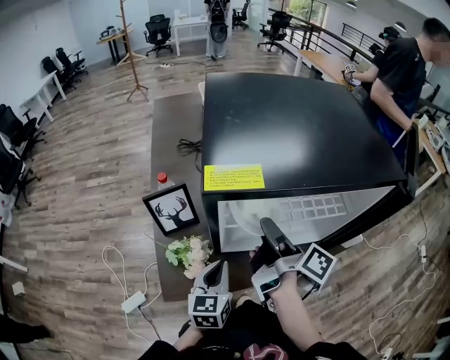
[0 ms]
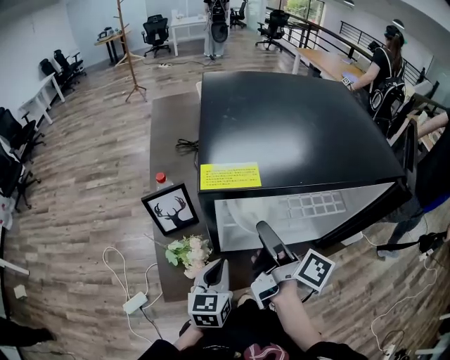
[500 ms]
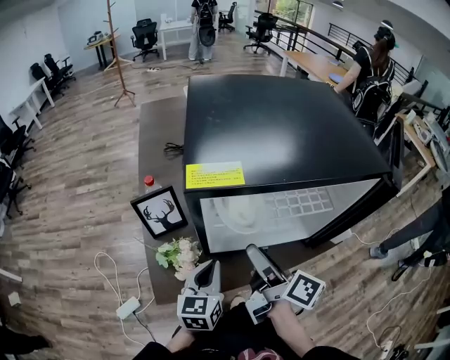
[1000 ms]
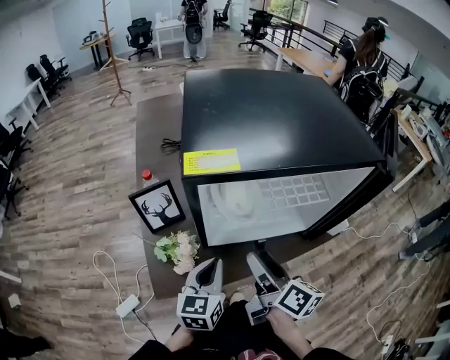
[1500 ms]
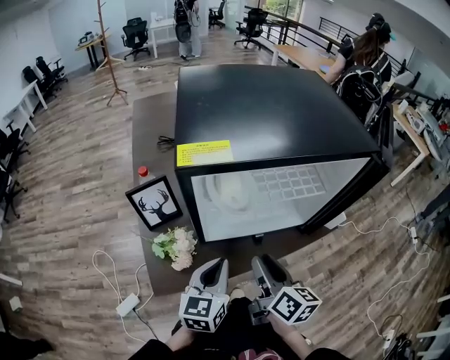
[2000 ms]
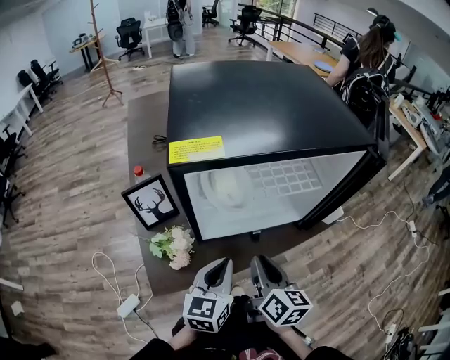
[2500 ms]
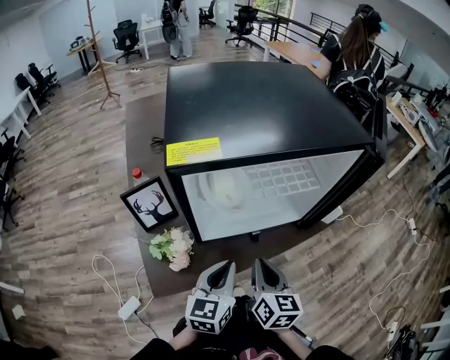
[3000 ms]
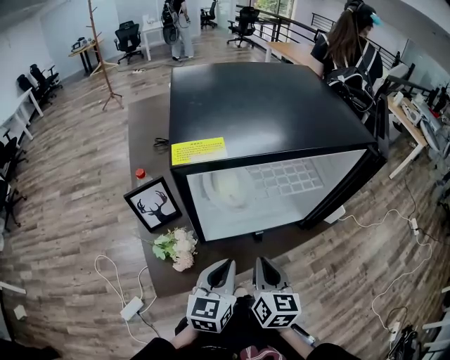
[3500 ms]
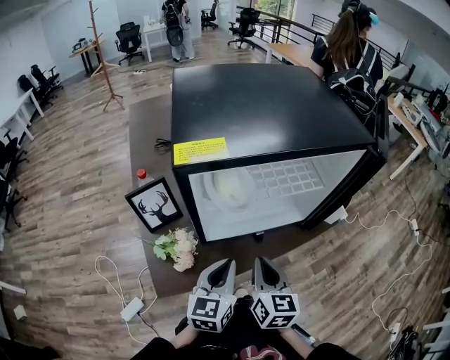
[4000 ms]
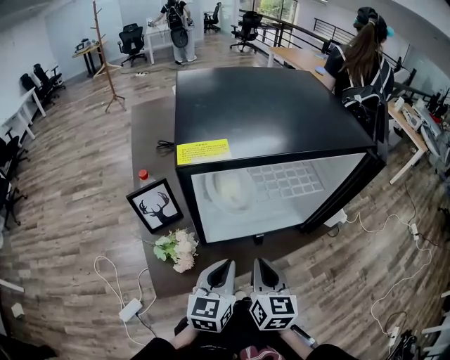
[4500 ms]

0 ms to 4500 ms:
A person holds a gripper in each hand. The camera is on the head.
0 ms to 2000 ms: The left gripper moves some 5 cm.

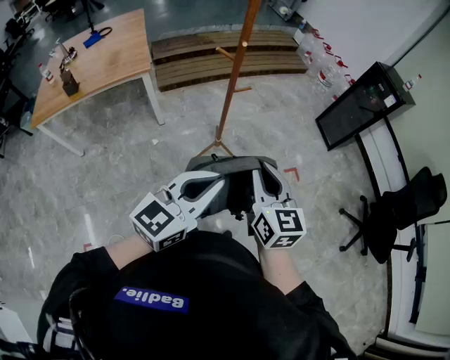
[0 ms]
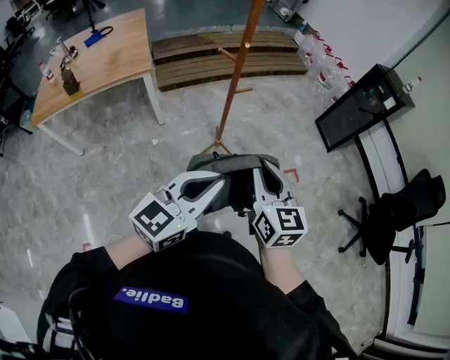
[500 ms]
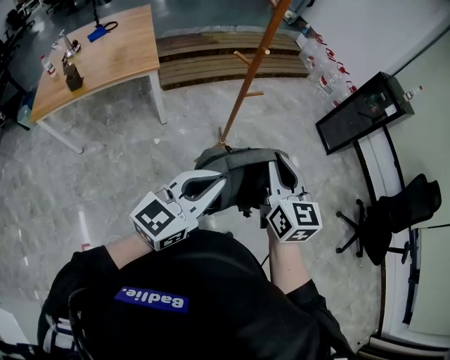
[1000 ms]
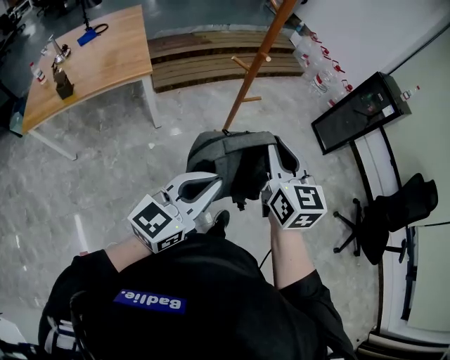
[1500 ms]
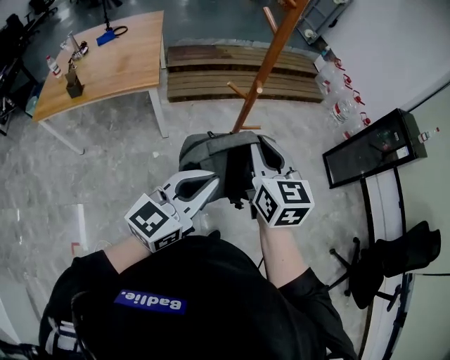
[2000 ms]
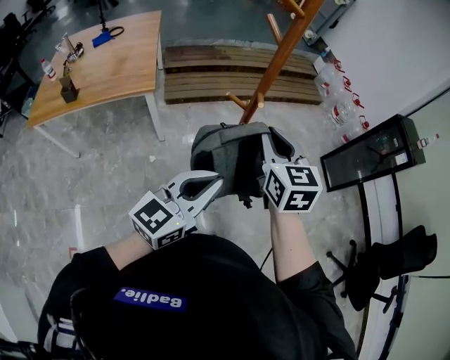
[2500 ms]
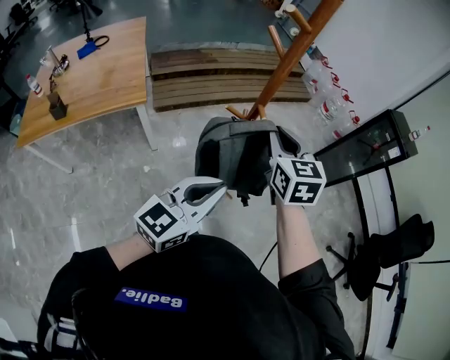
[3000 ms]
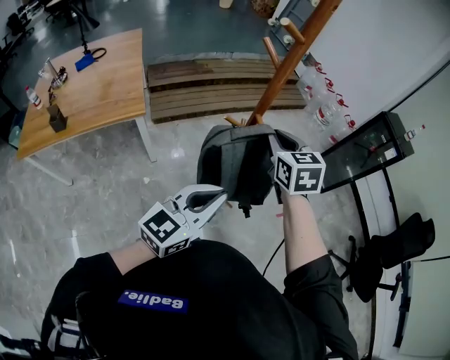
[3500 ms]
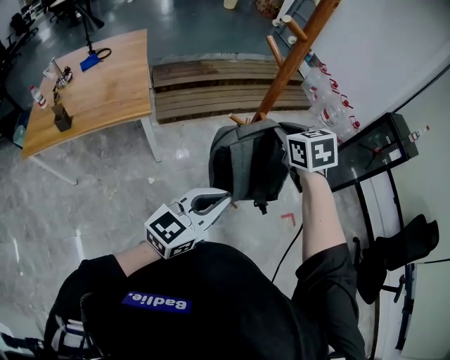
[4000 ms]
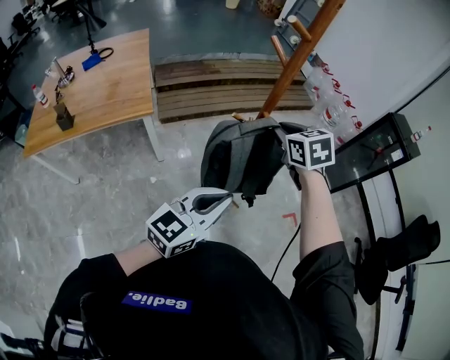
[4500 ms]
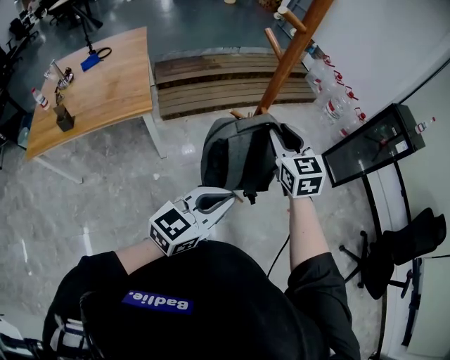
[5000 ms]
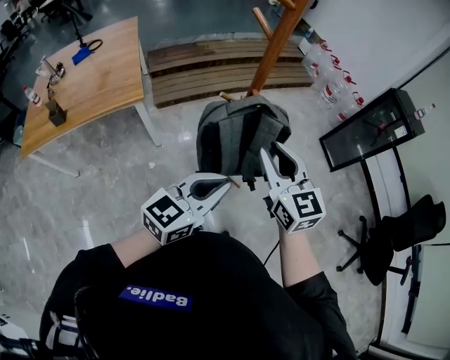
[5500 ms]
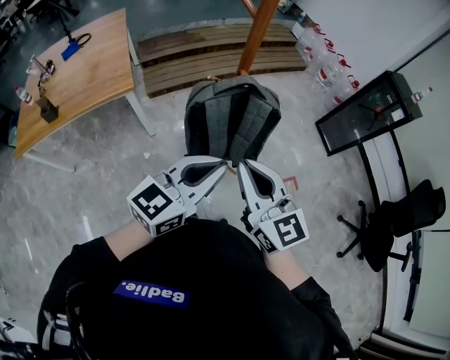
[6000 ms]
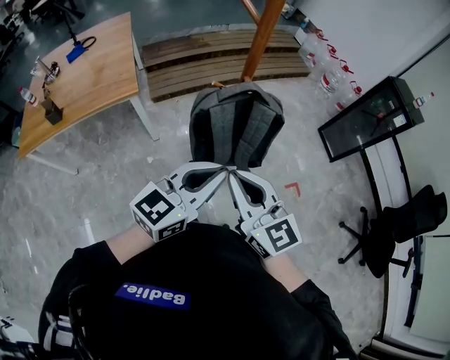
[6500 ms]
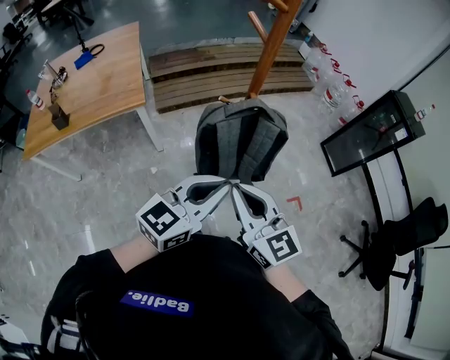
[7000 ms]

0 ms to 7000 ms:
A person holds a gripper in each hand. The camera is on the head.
0 ms to 2000 ms: The left gripper moves forward, some 15 cm. Meanwhile the right gripper is displaced forward and to the left by some 25 cm.
2000 ms to 3500 ms: The left gripper shifts approximately 5 cm forward. Meanwhile the right gripper is displaced forward by about 15 cm.
3500 ms to 5000 ms: There are only small adjustments of the grippers.
5000 ms to 7000 ms: The right gripper travels backward by roughly 20 cm, turns by approximately 20 degrees, and closes up.

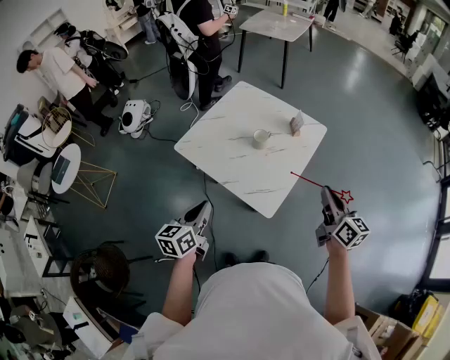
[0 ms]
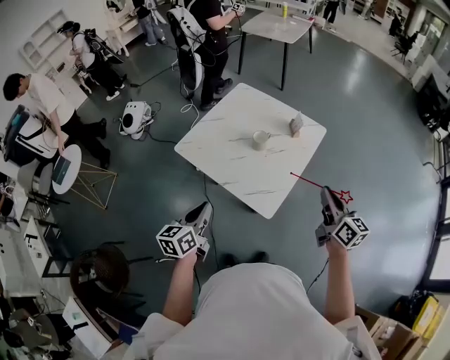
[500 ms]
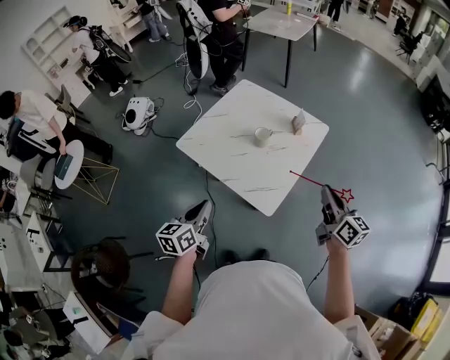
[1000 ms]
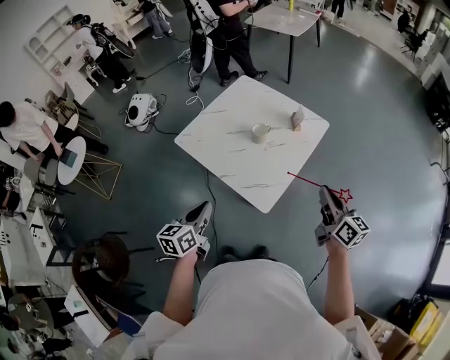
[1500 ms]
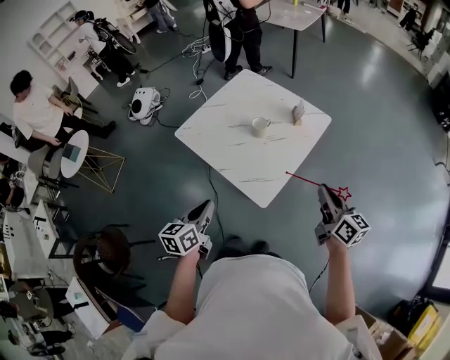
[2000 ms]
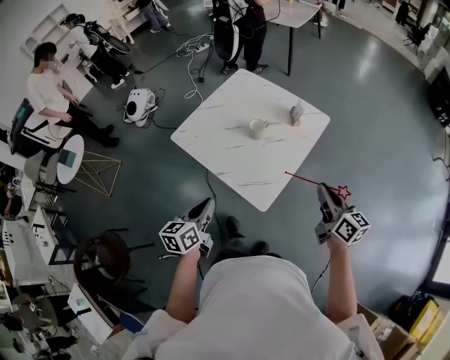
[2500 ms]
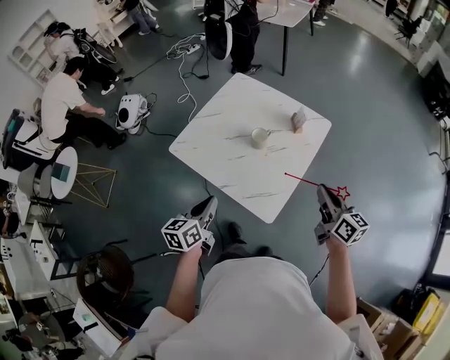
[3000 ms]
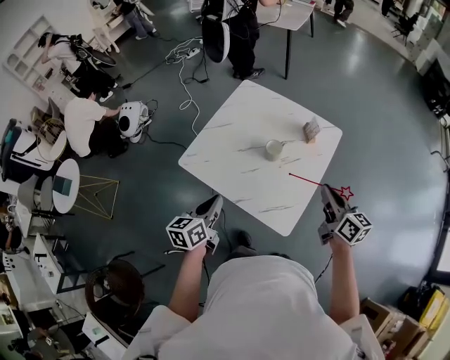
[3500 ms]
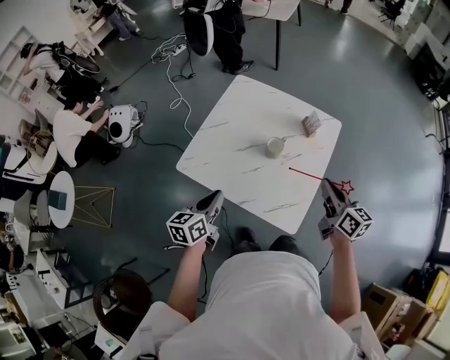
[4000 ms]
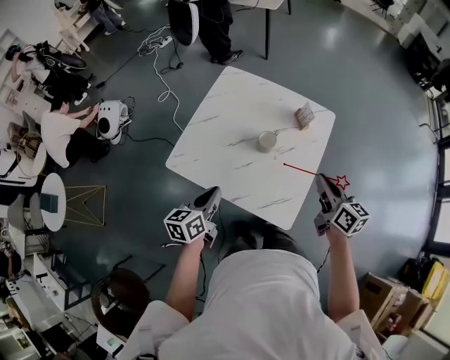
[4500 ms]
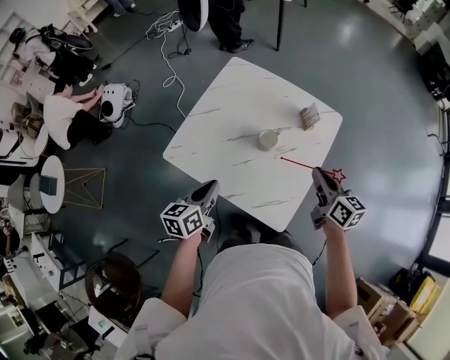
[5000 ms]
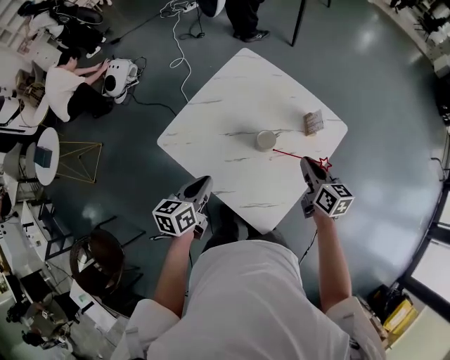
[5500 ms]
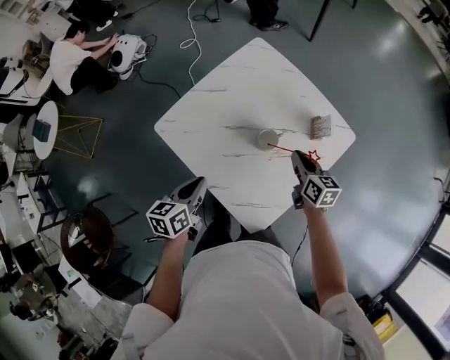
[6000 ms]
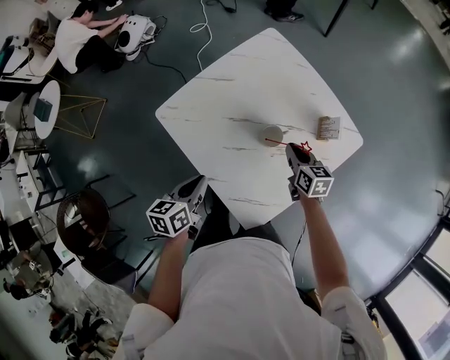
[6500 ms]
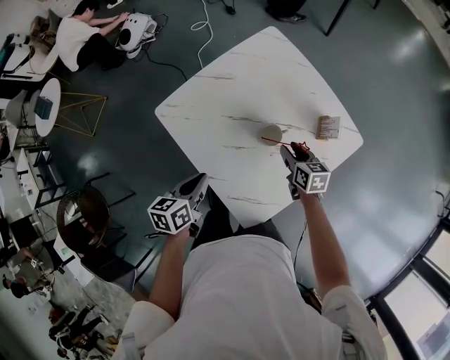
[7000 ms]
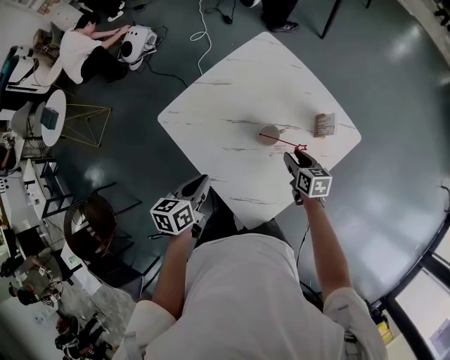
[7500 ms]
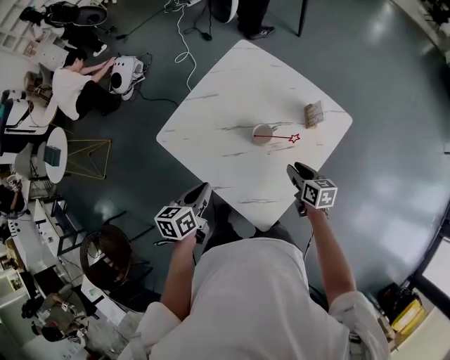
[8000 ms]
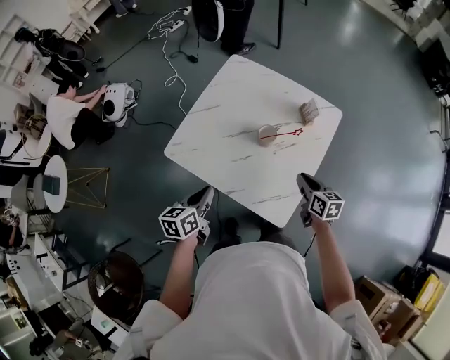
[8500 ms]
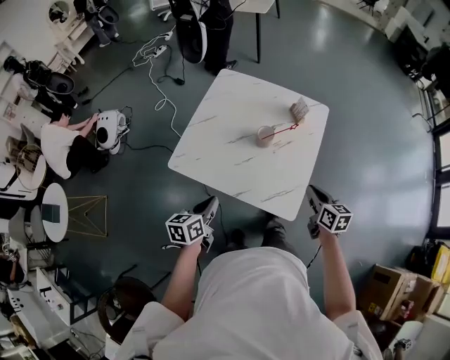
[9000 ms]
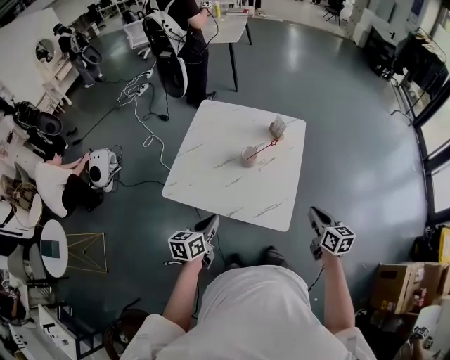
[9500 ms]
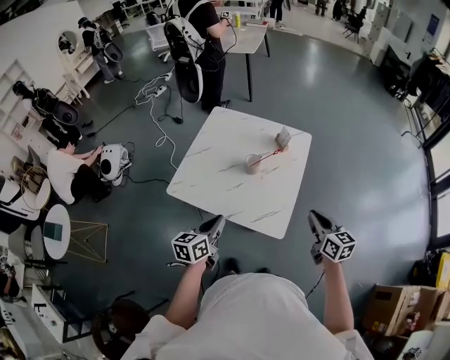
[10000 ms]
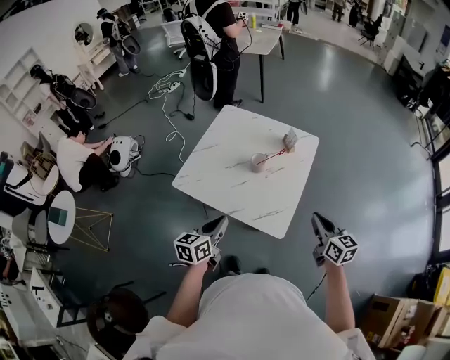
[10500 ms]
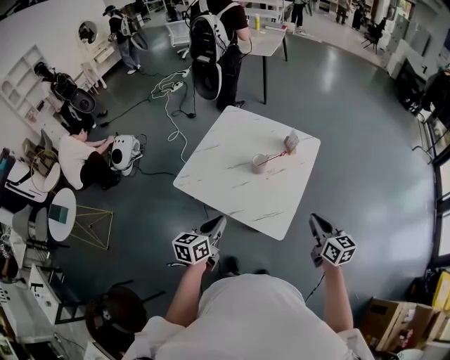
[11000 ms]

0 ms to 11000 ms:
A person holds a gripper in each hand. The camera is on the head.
0 ms to 2000 ms: The right gripper moves approximately 5 cm. Meanwhile the left gripper shifts approximately 5 cm to the right.
2000 ms to 3500 ms: Both grippers travel together forward and to the left, some 20 cm.
3500 ms to 5500 ms: The right gripper moves forward and downward, about 20 cm, while the left gripper moves forward, roughly 10 cm.
5500 ms to 7500 ms: The left gripper ends up roughly 5 cm from where it was. Meanwhile the right gripper heads downward, covering about 15 cm, swivels about 20 degrees, and opens its fingers.
7500 ms to 9000 ms: The right gripper moves roughly 30 cm, turns by roughly 30 degrees, and closes. Meanwhile the left gripper shifts by approximately 15 cm, and changes its angle by about 30 degrees.
9000 ms to 11000 ms: The right gripper moves upward, backward and to the right, roughly 15 cm. The left gripper heads upward, to the right and backward, covering approximately 15 cm.

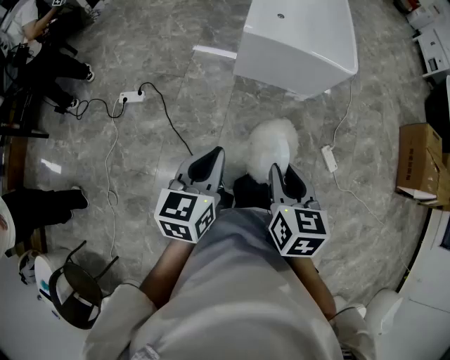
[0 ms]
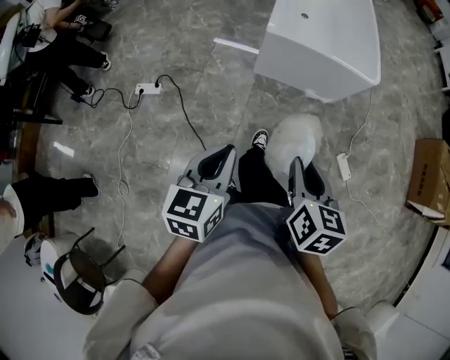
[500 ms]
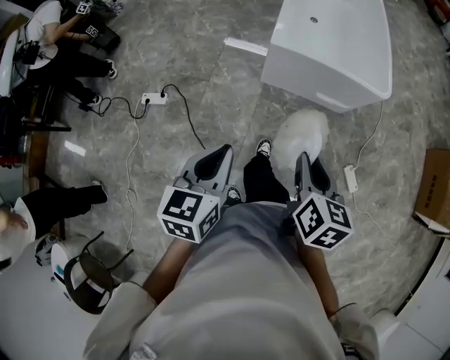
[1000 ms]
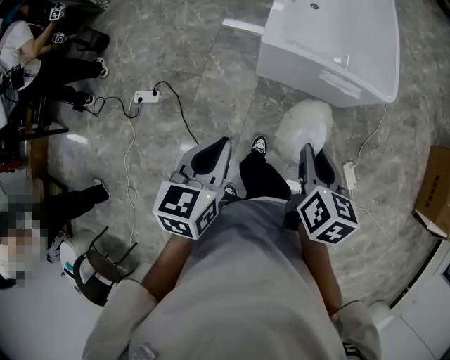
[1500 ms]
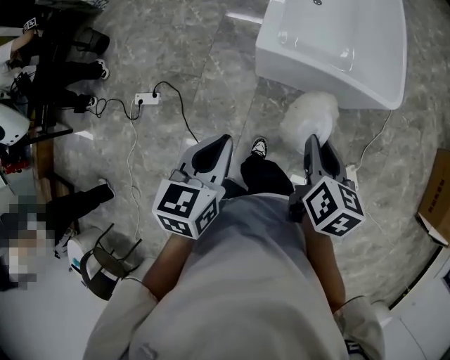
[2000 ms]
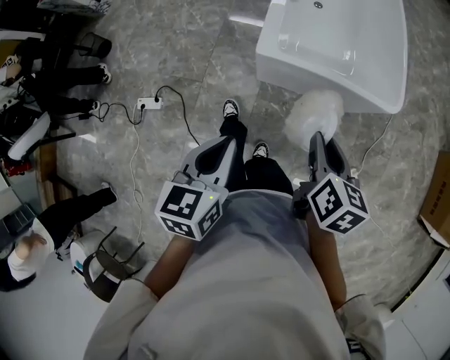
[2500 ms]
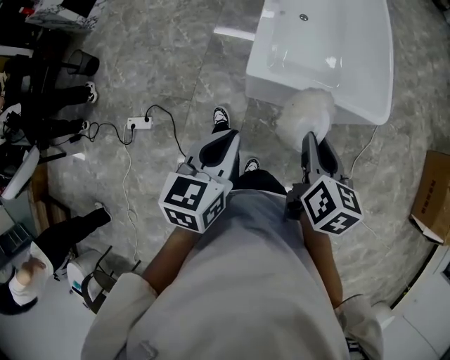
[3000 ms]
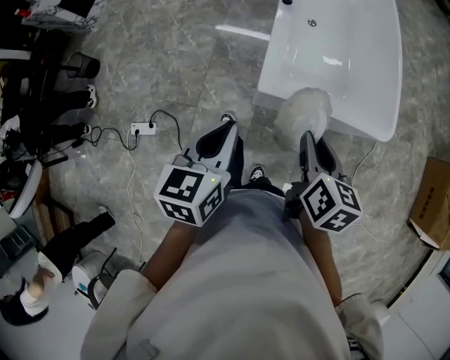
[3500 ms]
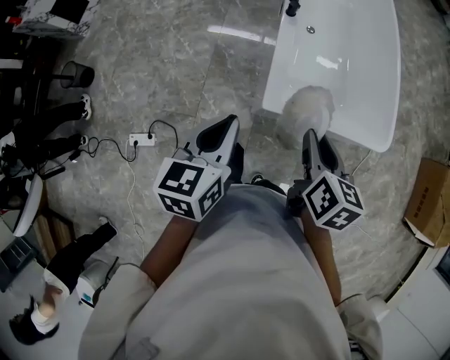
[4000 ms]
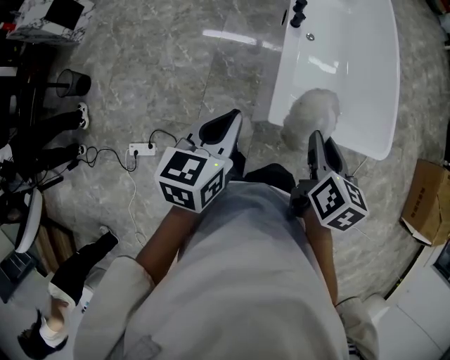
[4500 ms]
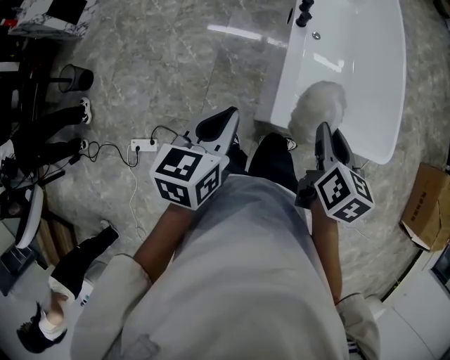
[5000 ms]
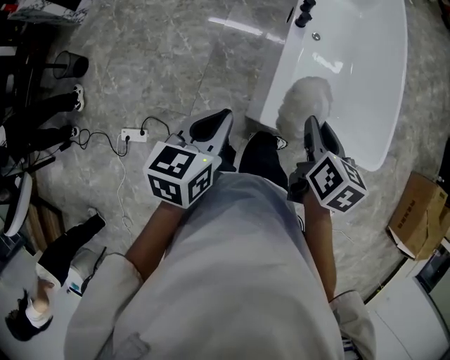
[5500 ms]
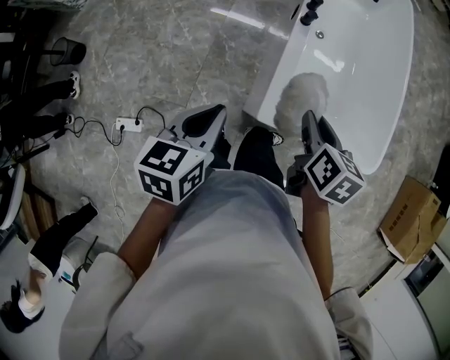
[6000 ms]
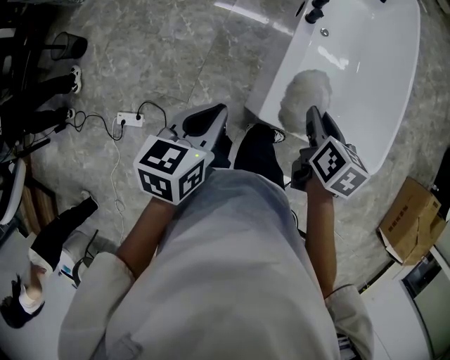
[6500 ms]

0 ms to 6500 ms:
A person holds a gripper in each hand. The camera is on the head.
0 ms to 2000 ms: The two grippers go about 35 cm forward.
2000 ms to 4500 ms: The grippers both shift forward and to the left by about 35 cm.
4500 ms to 6500 ms: The left gripper moves some 5 cm. Meanwhile the right gripper goes roughly 15 cm forward and downward.
